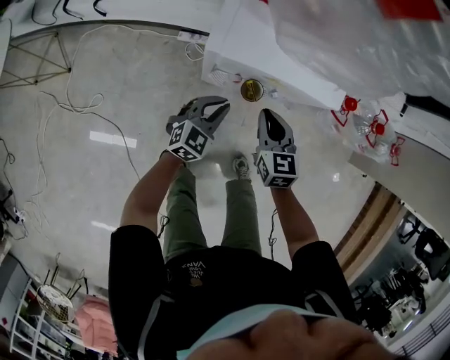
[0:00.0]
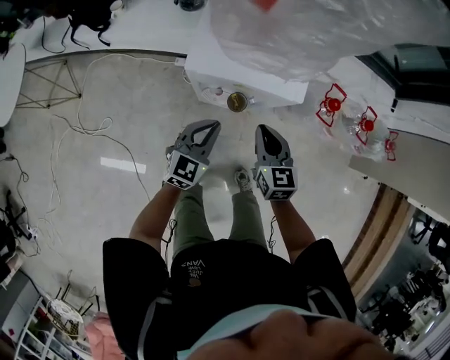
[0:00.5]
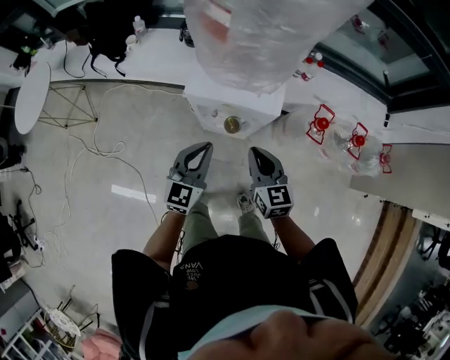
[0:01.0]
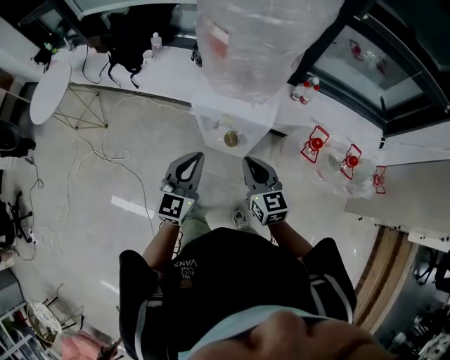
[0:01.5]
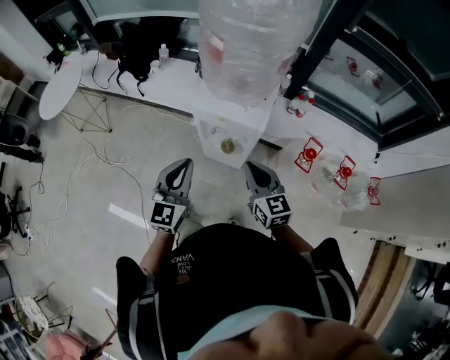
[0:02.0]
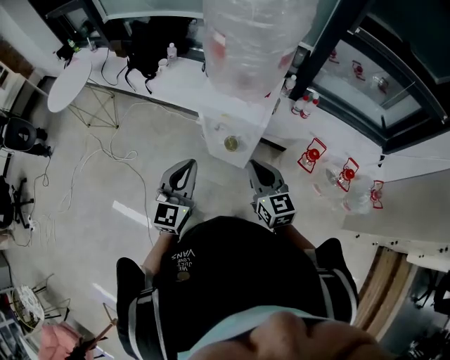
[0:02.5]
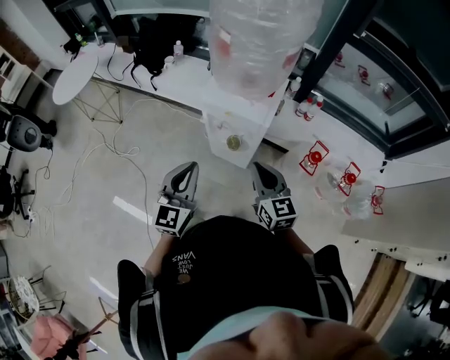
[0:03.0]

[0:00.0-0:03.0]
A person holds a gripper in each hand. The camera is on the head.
0:00.0 to 0:01.5: The left gripper travels upward by approximately 40 cm, and rotates some 40 degrees; the right gripper is displaced upward and backward by approximately 30 cm, and swivels approximately 20 degrees.
0:01.5 to 0:03.0: The grippers both shift backward and upward by some 10 cm.

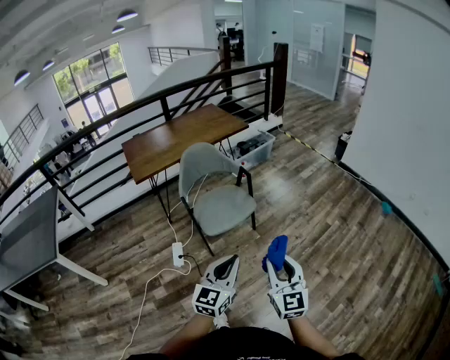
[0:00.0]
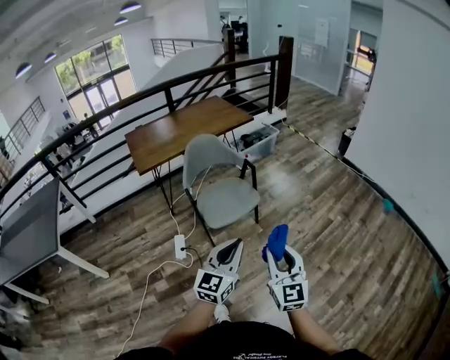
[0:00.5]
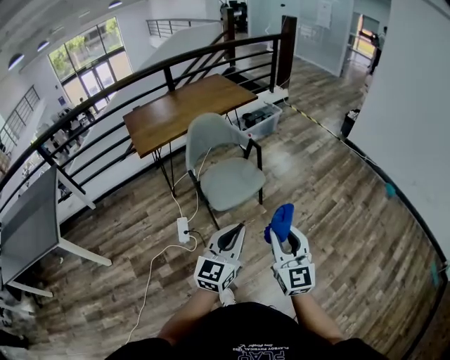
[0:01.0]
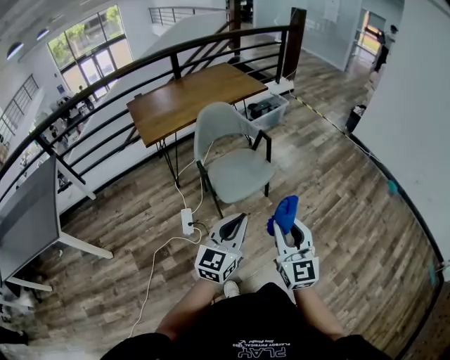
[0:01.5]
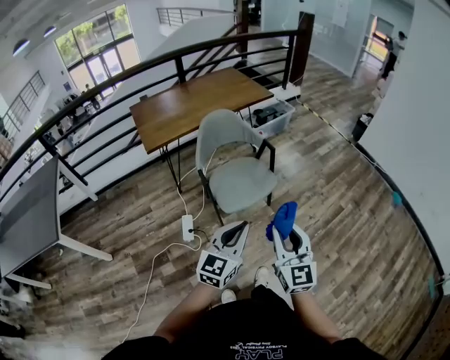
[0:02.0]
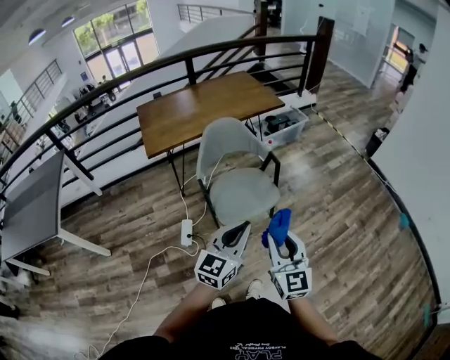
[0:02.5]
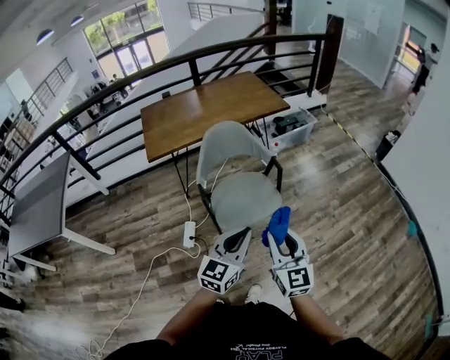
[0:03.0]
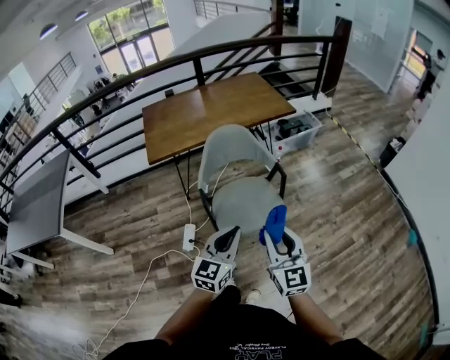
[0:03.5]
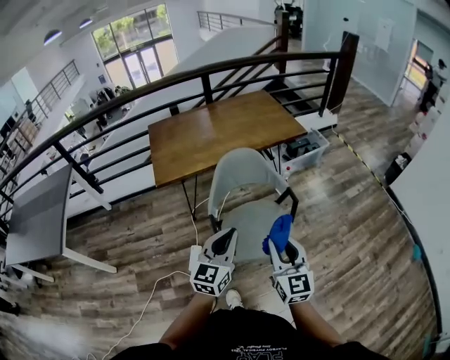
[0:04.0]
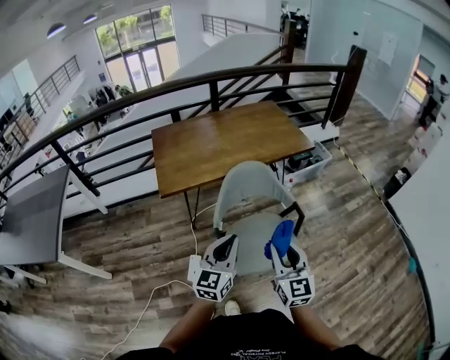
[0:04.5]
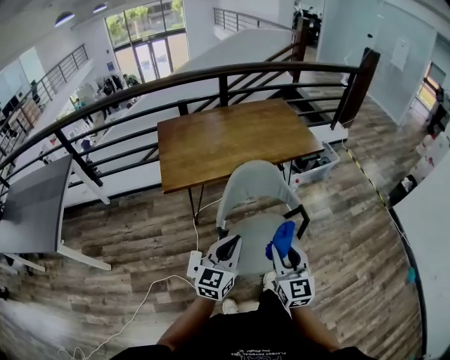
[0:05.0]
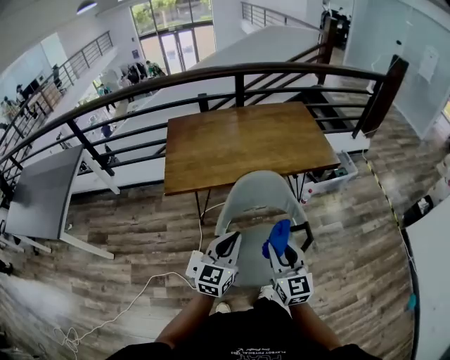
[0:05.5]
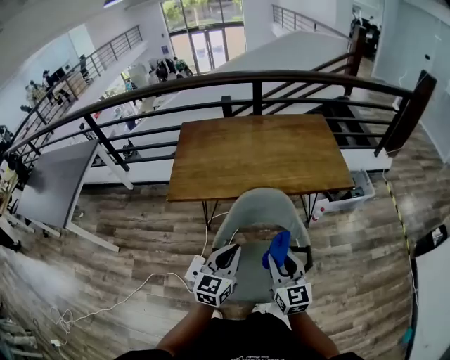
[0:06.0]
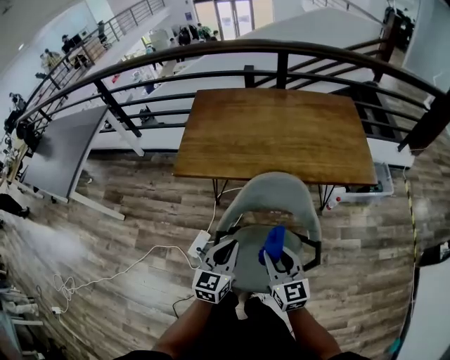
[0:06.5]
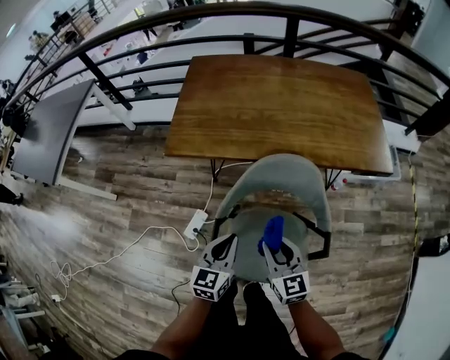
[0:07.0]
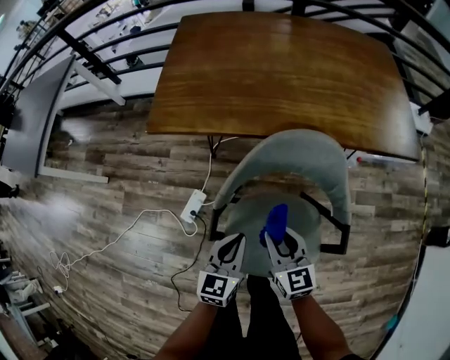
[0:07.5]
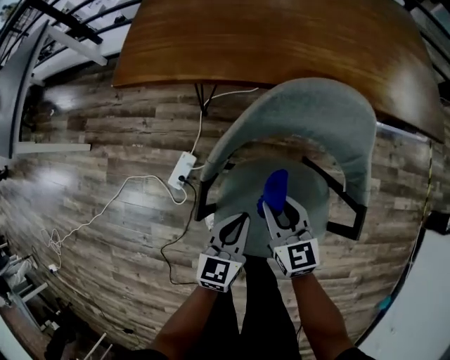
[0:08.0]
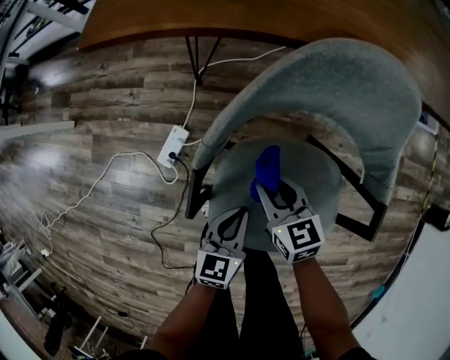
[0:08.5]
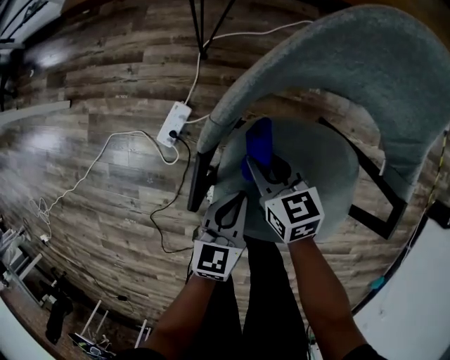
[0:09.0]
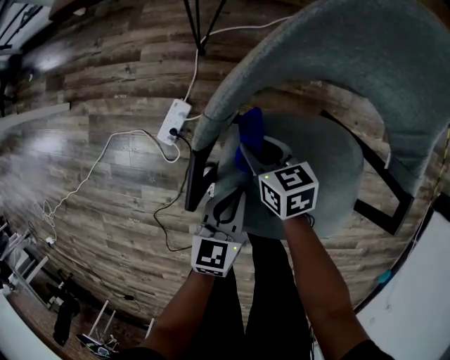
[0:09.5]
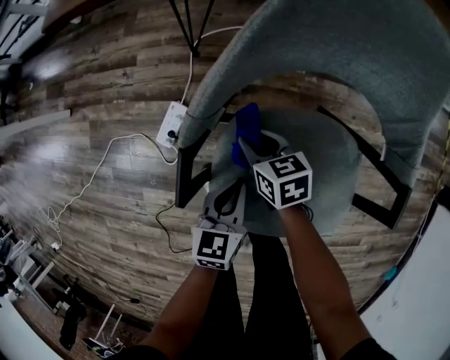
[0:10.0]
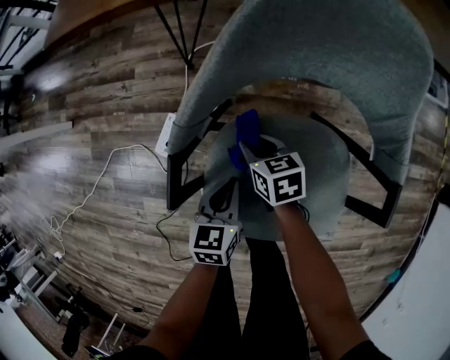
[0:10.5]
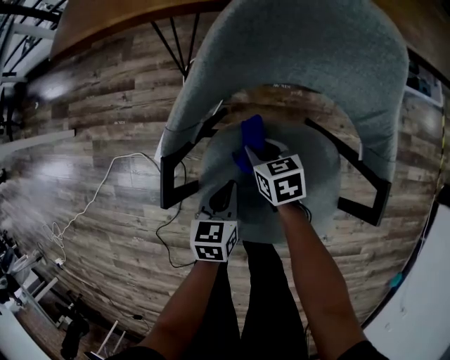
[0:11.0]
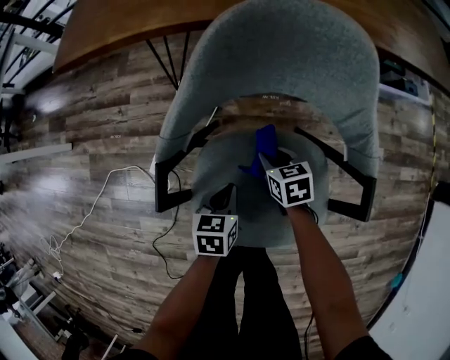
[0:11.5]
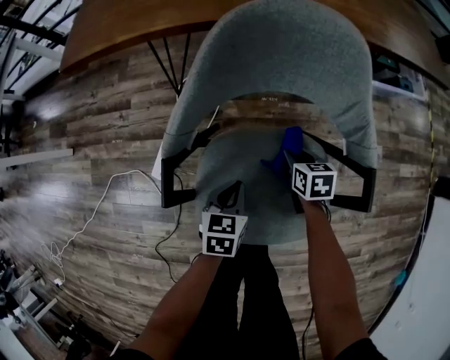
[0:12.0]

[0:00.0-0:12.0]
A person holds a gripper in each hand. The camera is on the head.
0:00.0 to 0:02.0: The right gripper travels to the left and forward by about 15 cm. Meanwhile the left gripper is displaced forward and to the left by some 15 cm.
0:02.0 to 0:04.0: Both grippers move forward, approximately 25 cm.
0:04.0 to 0:06.0: The grippers both shift forward by approximately 25 cm. The right gripper turns by some 20 degrees.
0:06.0 to 0:08.0: The grippers both shift downward by about 35 cm. The right gripper turns by roughly 30 degrees. Meanwhile the left gripper changes its angle by about 20 degrees.
0:08.0 to 0:10.0: The two grippers go roughly 15 cm downward. The right gripper changes its angle by approximately 30 degrees.
0:10.0 to 0:12.0: The right gripper shifts approximately 20 cm to the right, and turns by approximately 20 degrees, while the left gripper goes roughly 5 cm to the right.

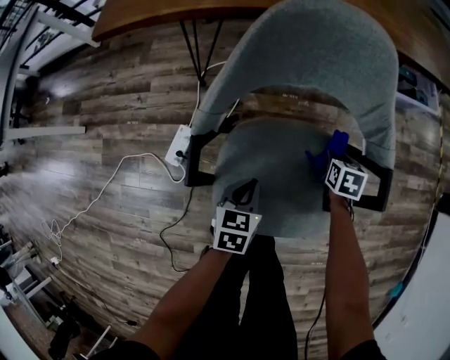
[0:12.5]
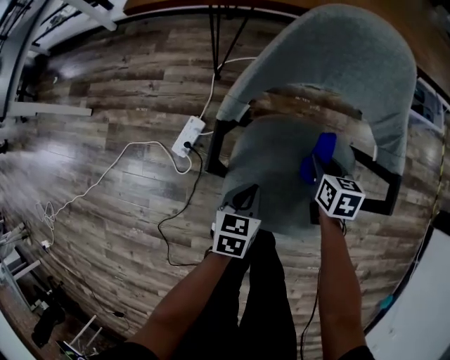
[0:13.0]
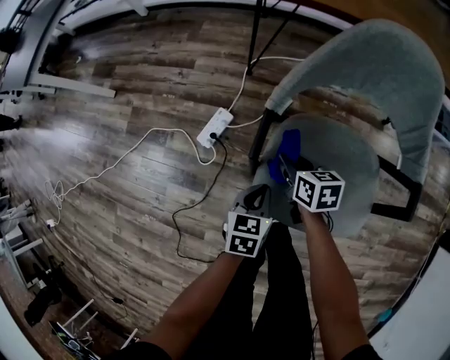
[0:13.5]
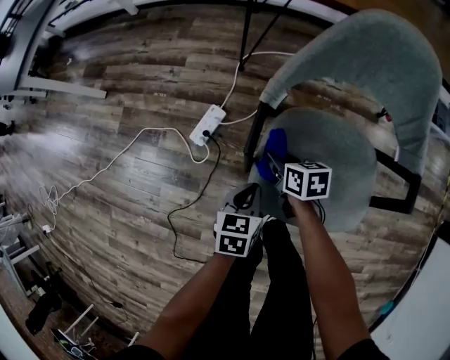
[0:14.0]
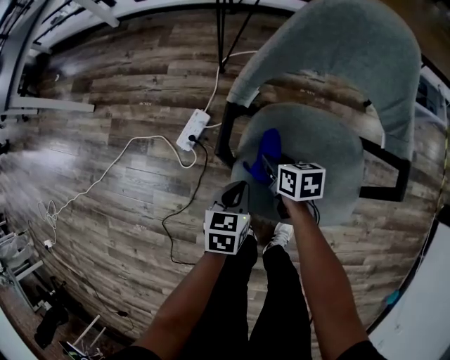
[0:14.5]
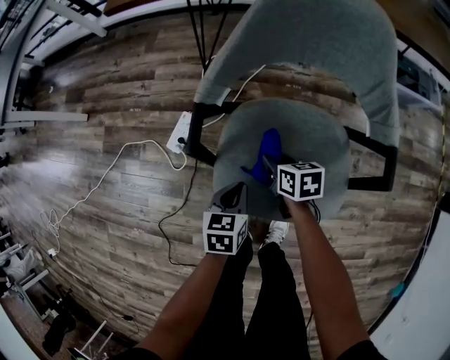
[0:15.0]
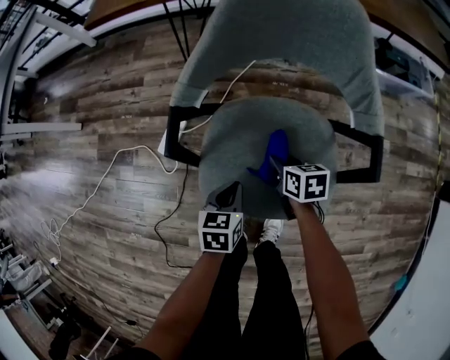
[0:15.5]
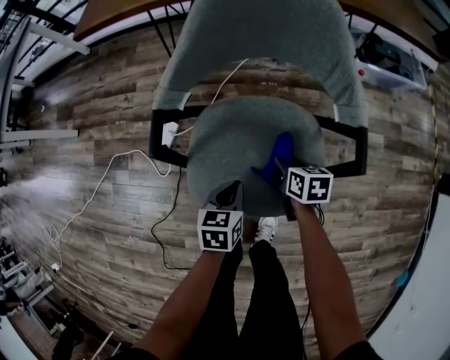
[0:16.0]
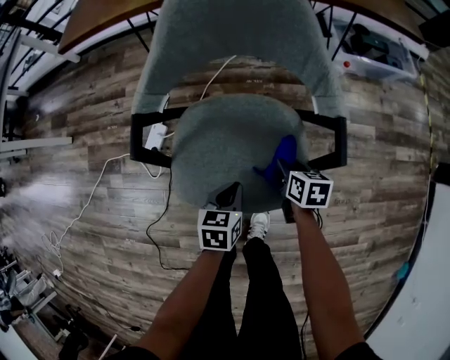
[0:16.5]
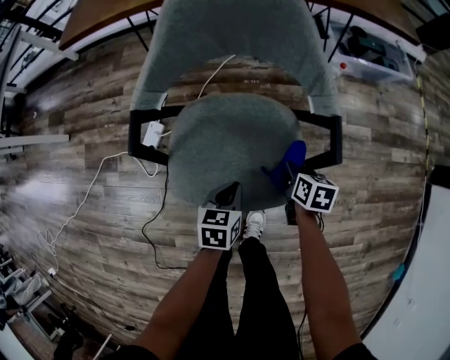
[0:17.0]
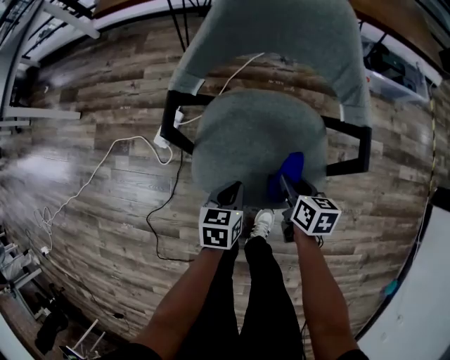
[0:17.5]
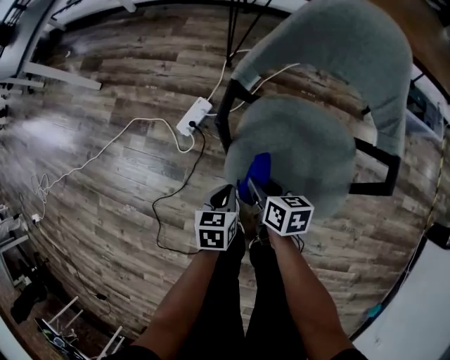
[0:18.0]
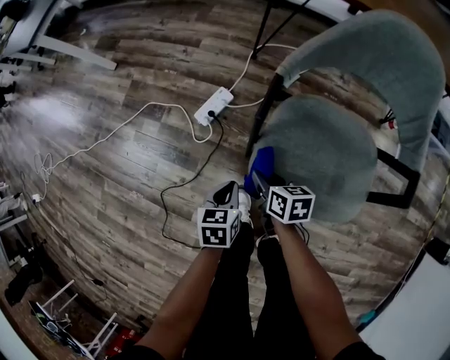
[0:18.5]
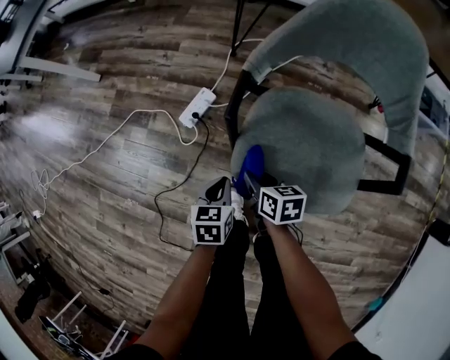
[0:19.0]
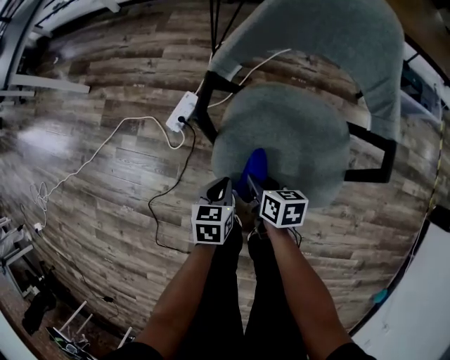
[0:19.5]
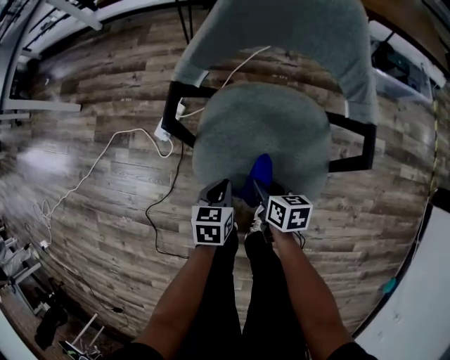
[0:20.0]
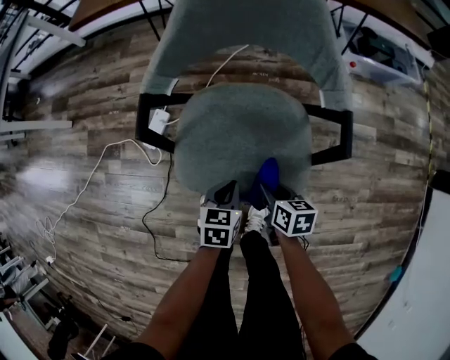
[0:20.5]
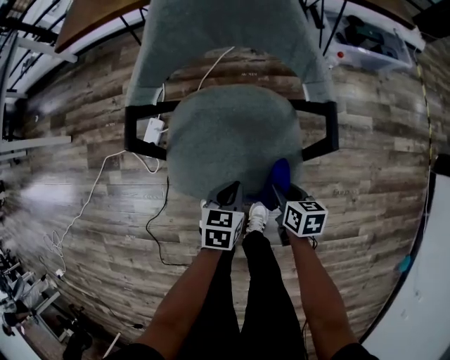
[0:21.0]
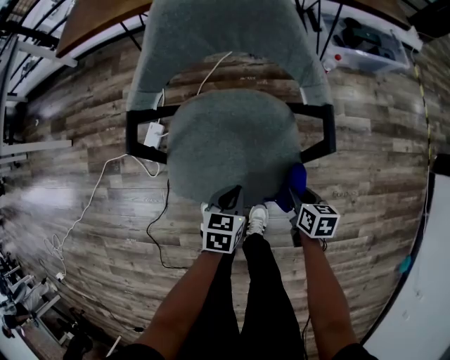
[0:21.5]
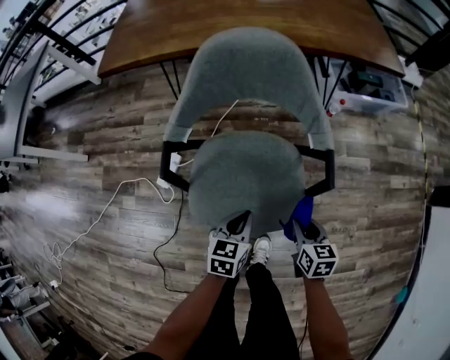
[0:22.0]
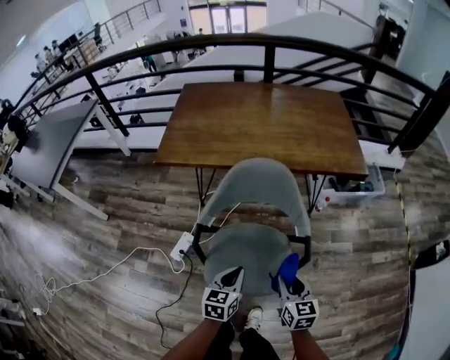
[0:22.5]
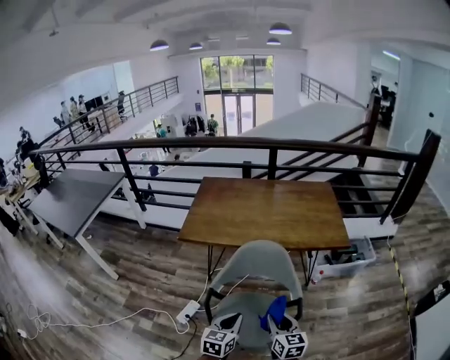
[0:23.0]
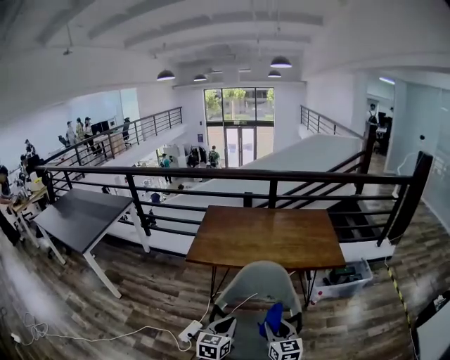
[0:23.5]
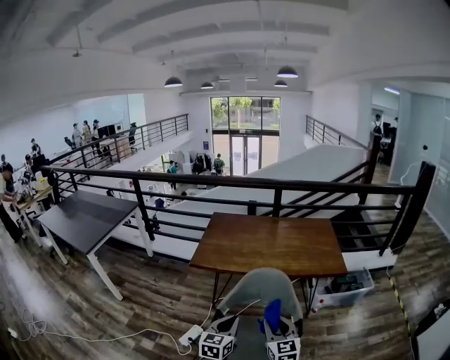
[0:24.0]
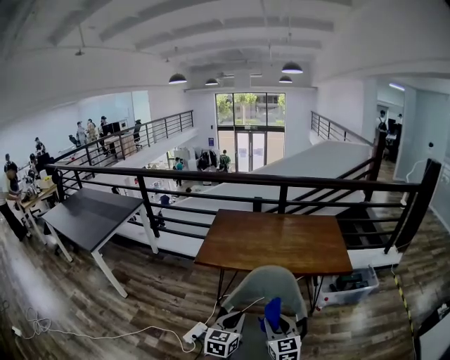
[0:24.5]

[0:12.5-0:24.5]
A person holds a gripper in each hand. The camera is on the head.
0:12.5 to 0:14.5: The left gripper shifts by approximately 10 cm, while the right gripper changes place by some 30 cm, and turns by some 40 degrees.
0:14.5 to 0:16.5: The grippers both shift to the right by some 20 cm.
0:16.5 to 0:18.5: The right gripper shifts by approximately 35 cm, and changes its angle by some 30 degrees, while the left gripper ends up about 25 cm from where it was, and swivels approximately 20 degrees.
0:18.5 to 0:20.5: The right gripper is displaced to the right and backward by about 25 cm, and turns by about 20 degrees. Meanwhile the left gripper goes approximately 20 cm to the right, and rotates about 20 degrees.
0:20.5 to 0:22.5: Both grippers travel together upward, about 30 cm. The left gripper turns by about 20 degrees. The right gripper changes its angle by roughly 40 degrees.
0:22.5 to 0:24.5: The left gripper shifts some 25 cm upward, and swivels some 20 degrees, while the right gripper heads upward and to the left, covering roughly 25 cm, and changes its angle by some 30 degrees.
